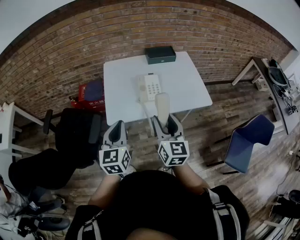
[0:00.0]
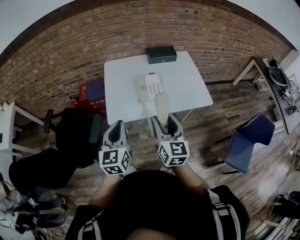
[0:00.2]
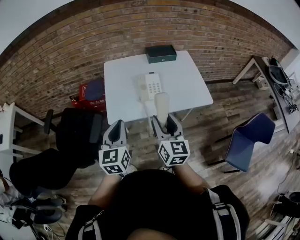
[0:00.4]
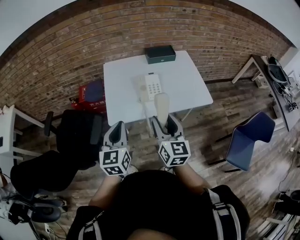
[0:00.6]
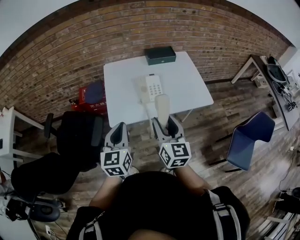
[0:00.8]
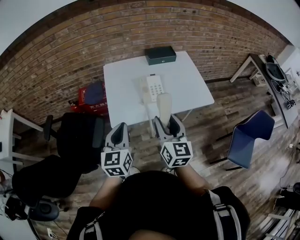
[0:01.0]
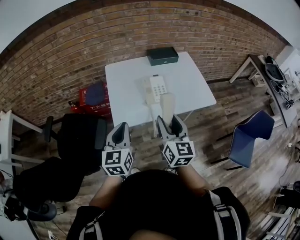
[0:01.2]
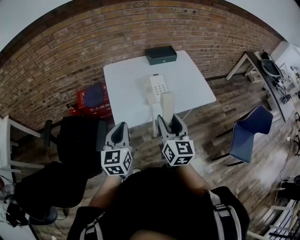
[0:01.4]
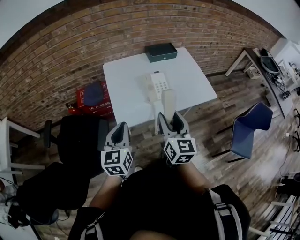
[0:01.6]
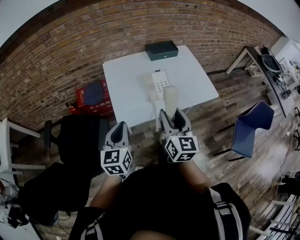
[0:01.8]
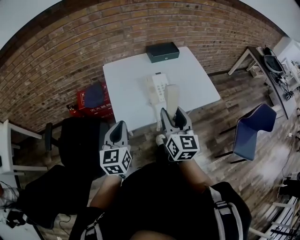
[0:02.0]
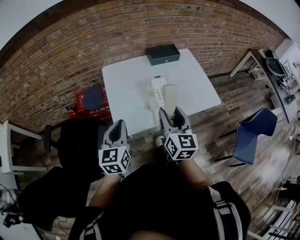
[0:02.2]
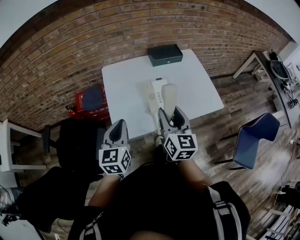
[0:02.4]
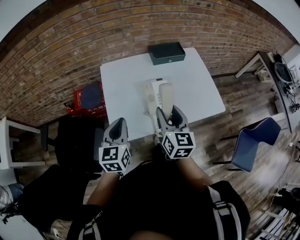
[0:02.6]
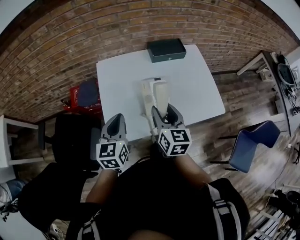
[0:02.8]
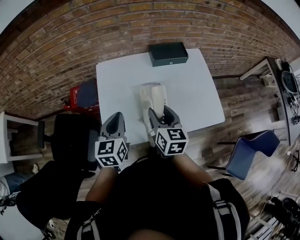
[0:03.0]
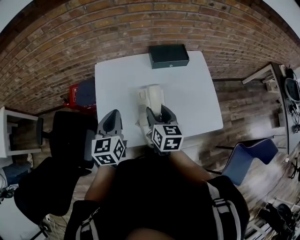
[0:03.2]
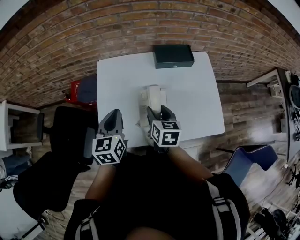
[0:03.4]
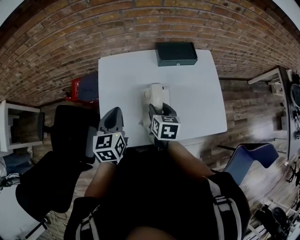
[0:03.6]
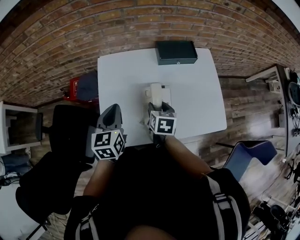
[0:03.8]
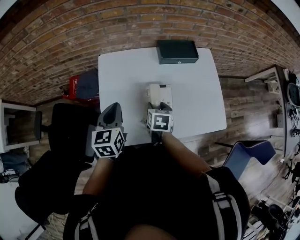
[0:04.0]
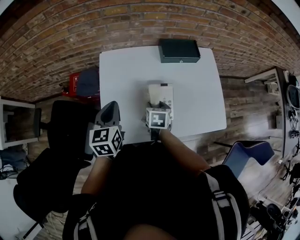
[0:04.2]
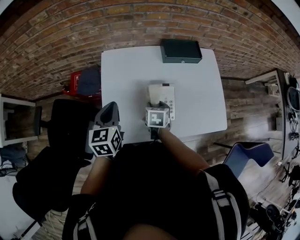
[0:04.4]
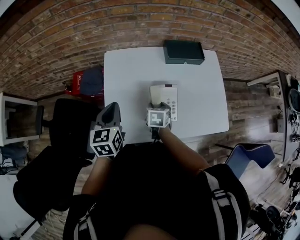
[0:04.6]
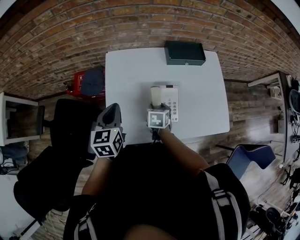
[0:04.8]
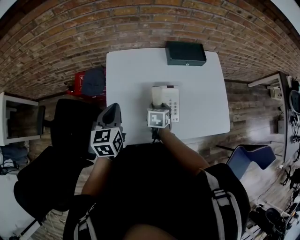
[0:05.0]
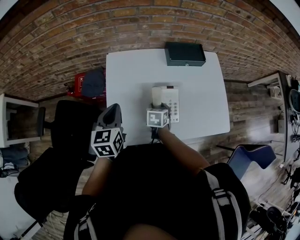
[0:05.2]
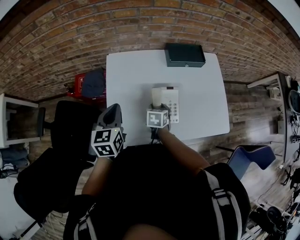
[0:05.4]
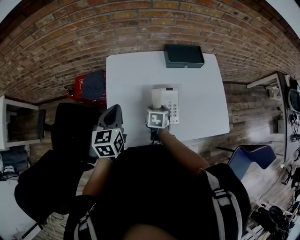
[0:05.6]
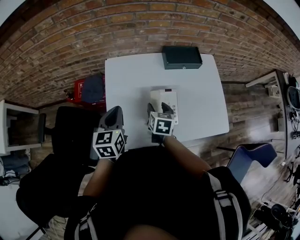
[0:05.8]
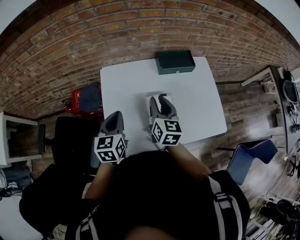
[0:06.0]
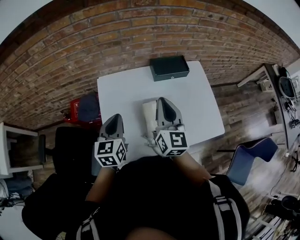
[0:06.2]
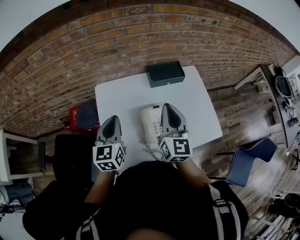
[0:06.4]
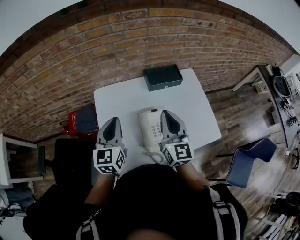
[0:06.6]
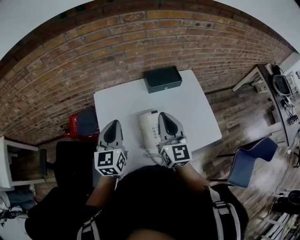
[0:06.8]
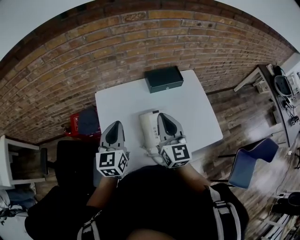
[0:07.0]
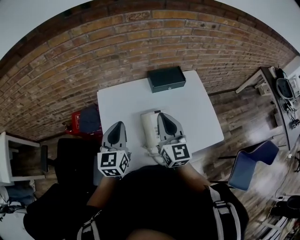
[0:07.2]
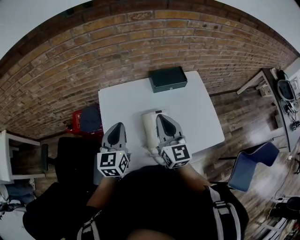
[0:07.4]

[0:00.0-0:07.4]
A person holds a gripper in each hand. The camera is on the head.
0.0 to 1.4 s: The two grippers go about 10 cm to the left.
1.4 to 3.0 s: The two grippers go some 25 cm forward. The right gripper swivels about 20 degrees.
3.0 to 4.4 s: The right gripper goes some 20 cm downward and forward, and tilts its fingers approximately 30 degrees downward. The left gripper goes roughly 5 cm forward.
4.4 to 6.0 s: The right gripper travels upward by approximately 20 cm, points its fingers roughly 40 degrees further upward, and closes.
6.0 to 7.4 s: Both grippers move upward, approximately 5 cm. The right gripper closes its fingers.

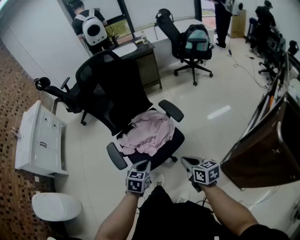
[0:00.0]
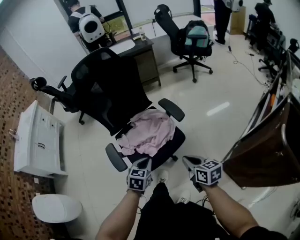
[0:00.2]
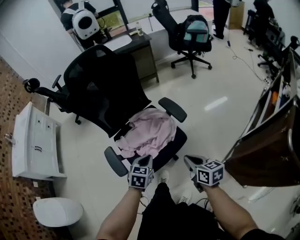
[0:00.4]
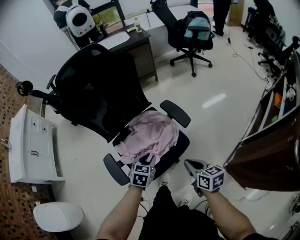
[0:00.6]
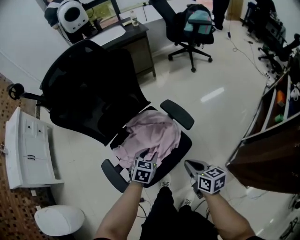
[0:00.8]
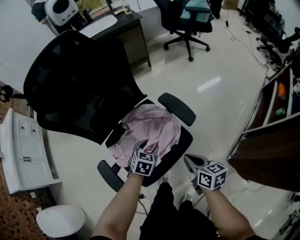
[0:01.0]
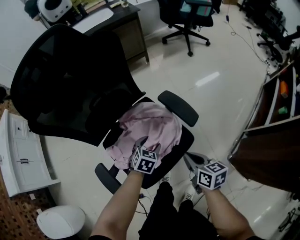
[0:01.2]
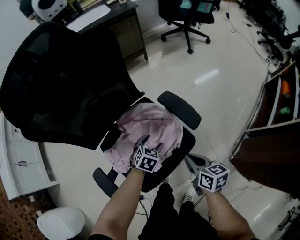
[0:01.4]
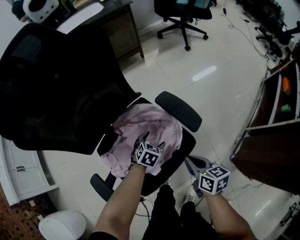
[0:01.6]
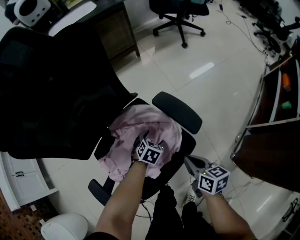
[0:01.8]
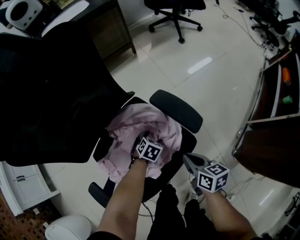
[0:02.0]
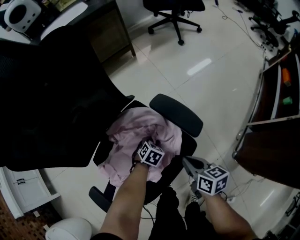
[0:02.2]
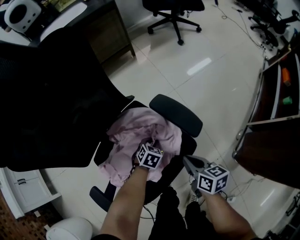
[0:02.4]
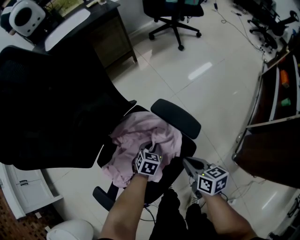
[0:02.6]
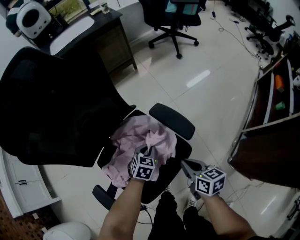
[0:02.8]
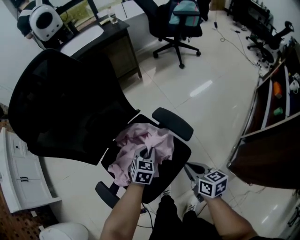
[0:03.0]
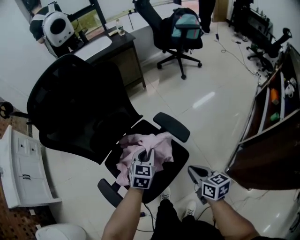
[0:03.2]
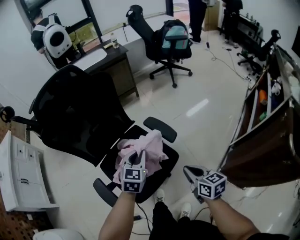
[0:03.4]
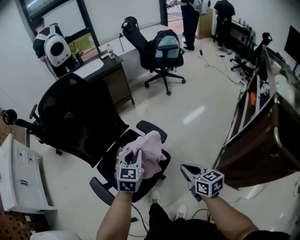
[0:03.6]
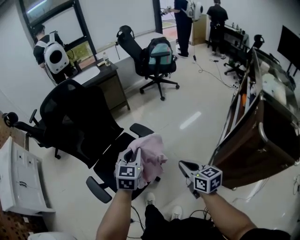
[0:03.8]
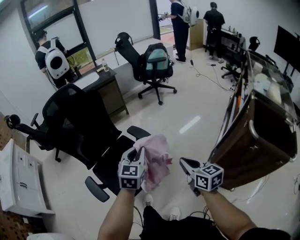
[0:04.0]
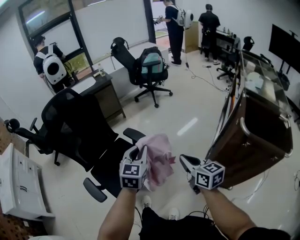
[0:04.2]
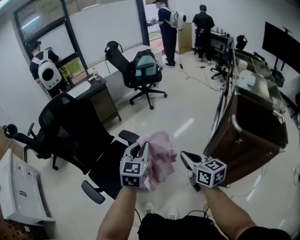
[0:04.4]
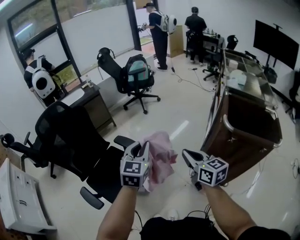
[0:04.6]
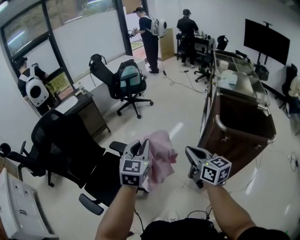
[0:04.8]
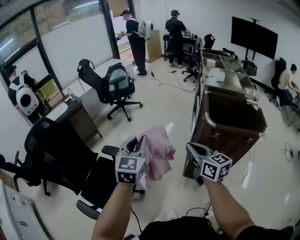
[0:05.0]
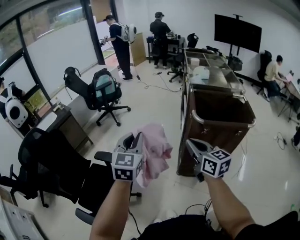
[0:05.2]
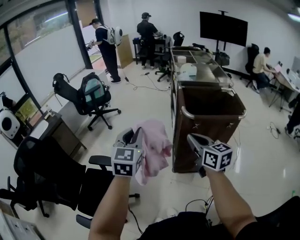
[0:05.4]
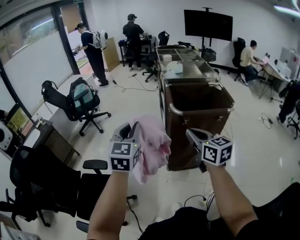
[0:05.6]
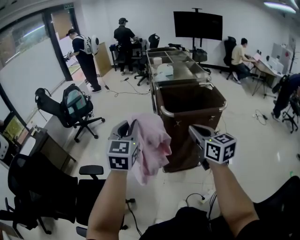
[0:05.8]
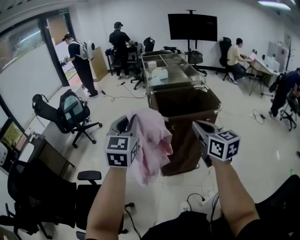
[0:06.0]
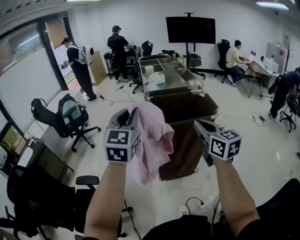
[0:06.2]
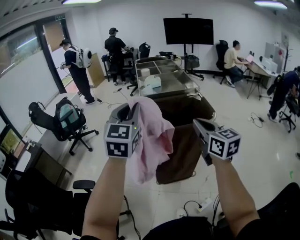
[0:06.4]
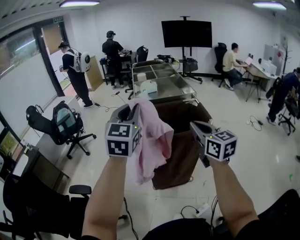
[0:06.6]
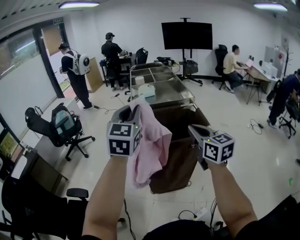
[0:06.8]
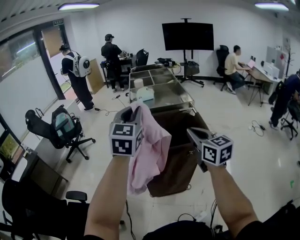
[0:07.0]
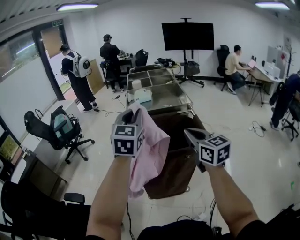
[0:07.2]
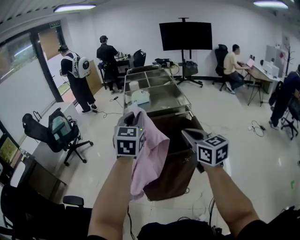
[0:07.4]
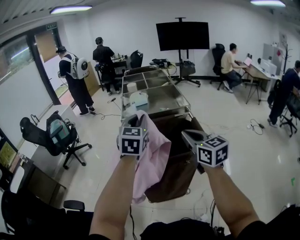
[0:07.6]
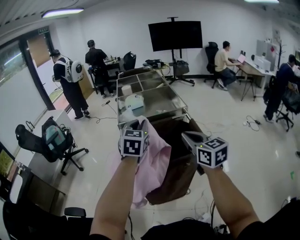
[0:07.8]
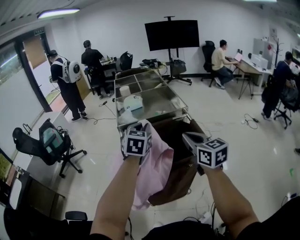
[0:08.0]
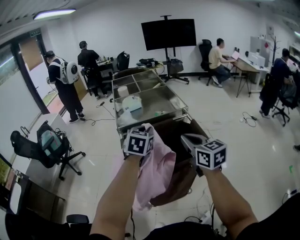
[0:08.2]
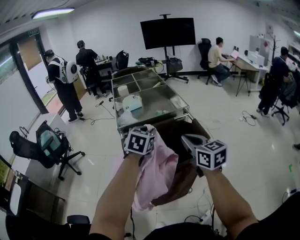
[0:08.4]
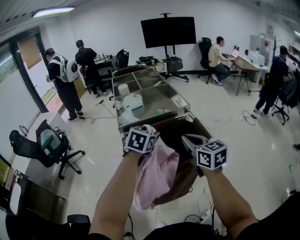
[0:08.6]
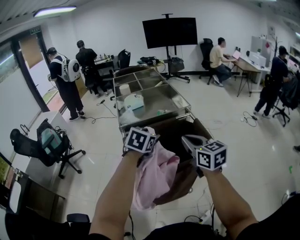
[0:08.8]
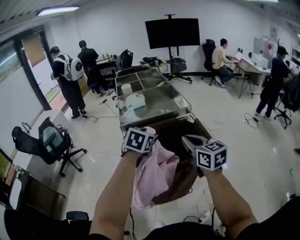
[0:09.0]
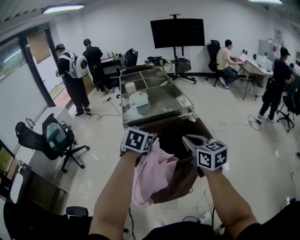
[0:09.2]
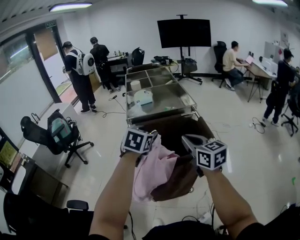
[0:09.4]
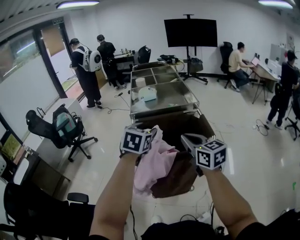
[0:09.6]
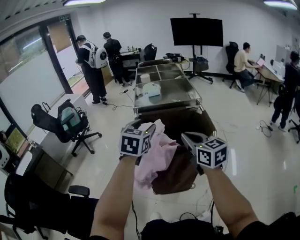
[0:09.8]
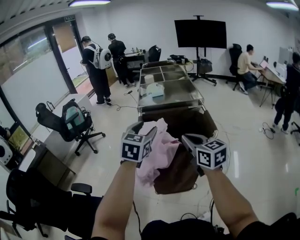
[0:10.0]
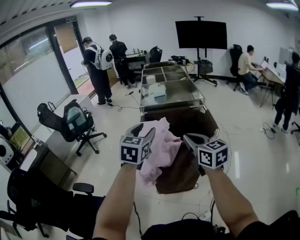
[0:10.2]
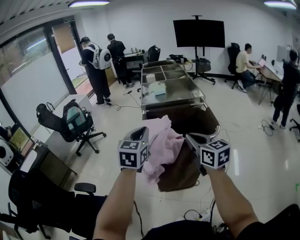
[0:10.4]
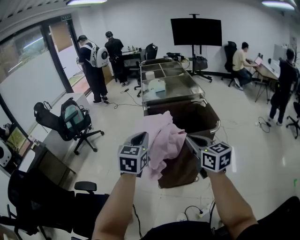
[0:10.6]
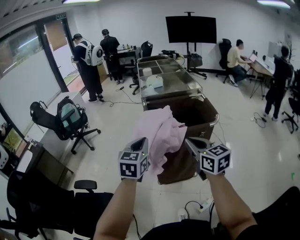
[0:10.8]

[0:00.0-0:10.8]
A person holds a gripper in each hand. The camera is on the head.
0.0 to 1.6 s: The two grippers go approximately 40 cm forward and downward. The left gripper changes its angle by approximately 30 degrees, and opens.
1.6 to 3.0 s: The left gripper shifts roughly 10 cm upward, and closes, while the right gripper moves some 5 cm.
3.0 to 4.6 s: The grippers both shift upward, to the right and backward by about 50 cm. The left gripper tilts its fingers approximately 30 degrees upward, while the right gripper changes its angle by approximately 30 degrees.
4.6 to 6.2 s: The left gripper shifts by approximately 35 cm, and turns by some 40 degrees, while the right gripper shifts by roughly 35 cm, and changes its angle by roughly 40 degrees.
6.2 to 7.8 s: Both grippers move forward and to the right, about 25 cm.
7.8 to 9.2 s: The left gripper goes about 5 cm downward, changes its angle by roughly 20 degrees, and opens up.
9.2 to 10.8 s: Both grippers move backward and to the left, approximately 25 cm. The left gripper turns by some 20 degrees, and closes its fingers.

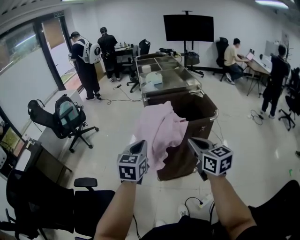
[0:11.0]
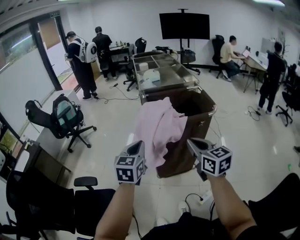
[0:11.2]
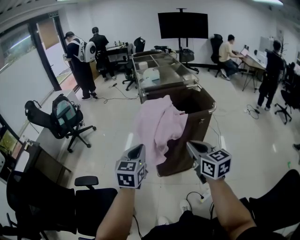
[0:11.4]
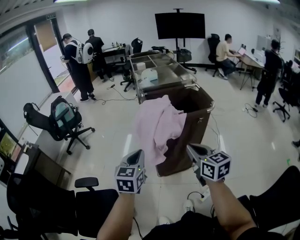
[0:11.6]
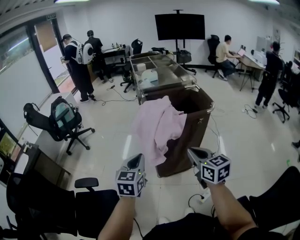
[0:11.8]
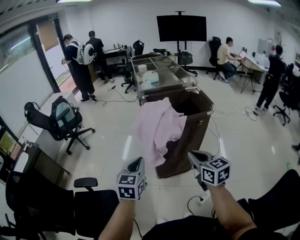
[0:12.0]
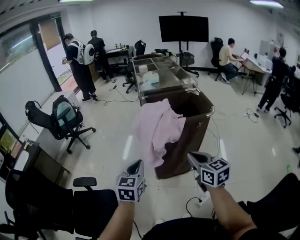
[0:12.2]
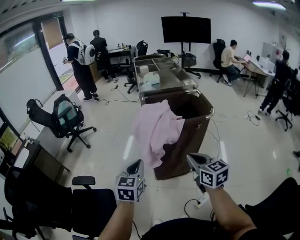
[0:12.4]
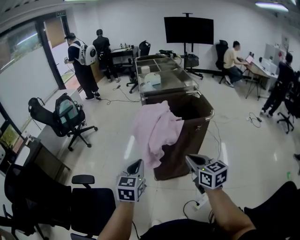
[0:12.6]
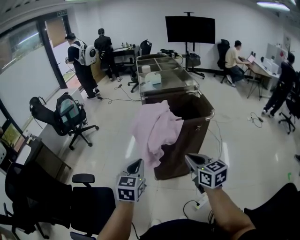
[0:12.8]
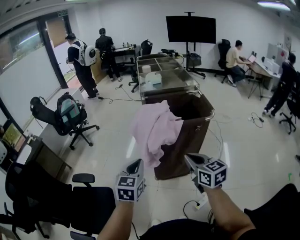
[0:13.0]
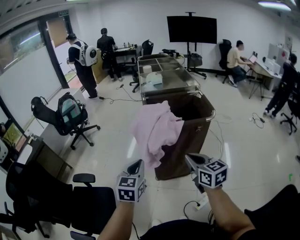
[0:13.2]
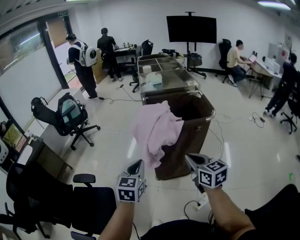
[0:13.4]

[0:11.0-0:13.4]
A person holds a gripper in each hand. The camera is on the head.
11.0 to 12.2 s: The right gripper moves backward, roughly 5 cm. Meanwhile the left gripper goes roughly 10 cm backward and downward.
12.2 to 13.4 s: The grippers make only small movements.

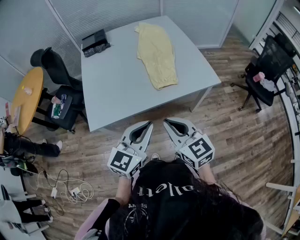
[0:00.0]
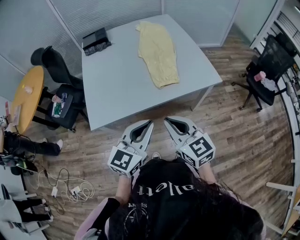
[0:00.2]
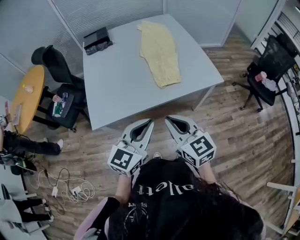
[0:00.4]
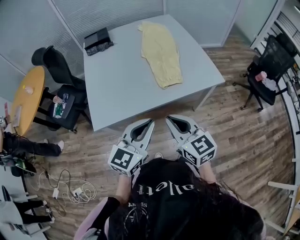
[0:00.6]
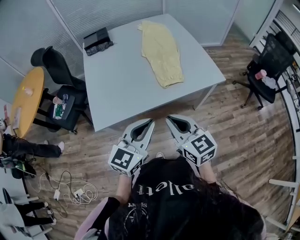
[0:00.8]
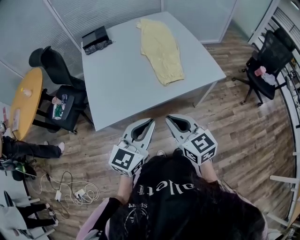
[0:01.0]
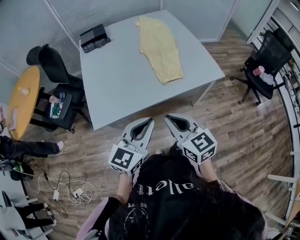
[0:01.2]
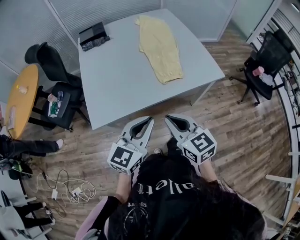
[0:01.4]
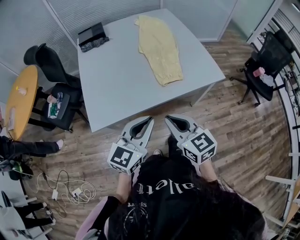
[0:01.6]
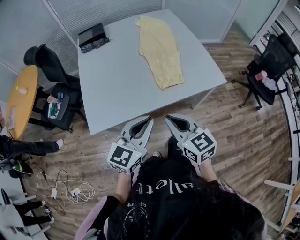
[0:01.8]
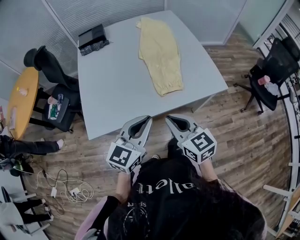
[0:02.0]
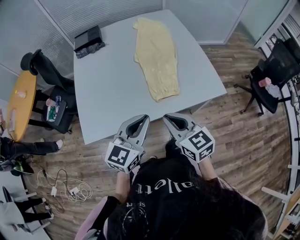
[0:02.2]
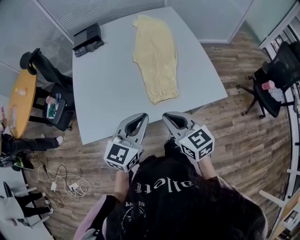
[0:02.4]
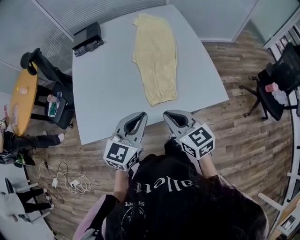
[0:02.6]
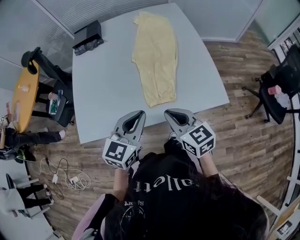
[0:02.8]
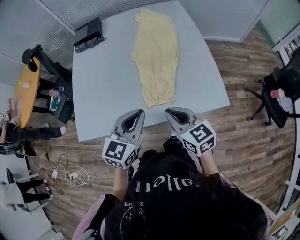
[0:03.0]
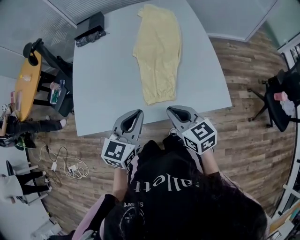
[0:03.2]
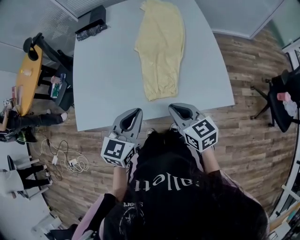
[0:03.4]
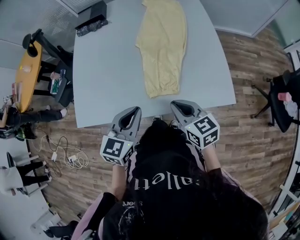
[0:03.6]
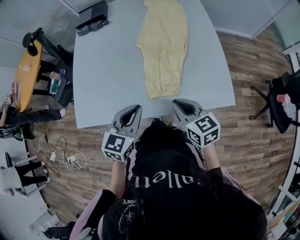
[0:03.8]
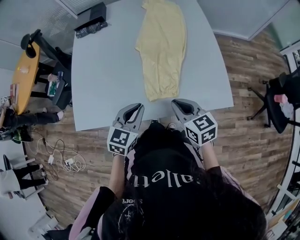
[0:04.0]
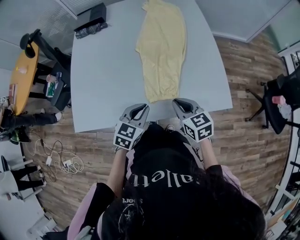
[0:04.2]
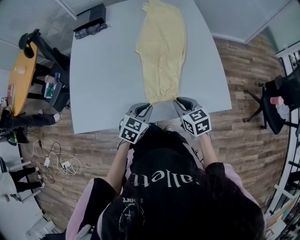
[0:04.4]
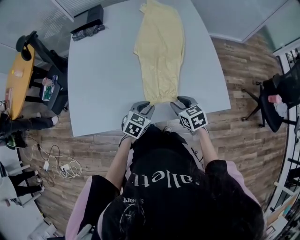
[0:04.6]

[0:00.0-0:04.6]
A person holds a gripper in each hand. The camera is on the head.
0.0 to 1.6 s: The left gripper changes place by some 5 cm. Meanwhile the right gripper moves roughly 5 cm.
1.6 to 3.0 s: The grippers both shift forward and to the right by some 25 cm.
3.0 to 4.6 s: The grippers both shift downward by some 20 cm. The right gripper turns by approximately 20 degrees, and opens; the left gripper turns by approximately 30 degrees.
